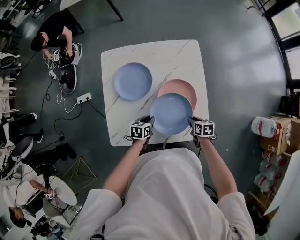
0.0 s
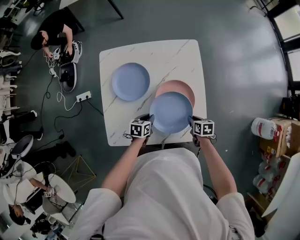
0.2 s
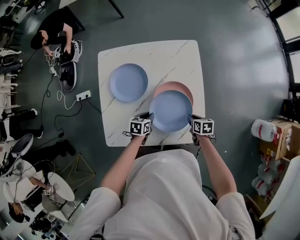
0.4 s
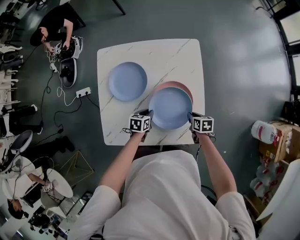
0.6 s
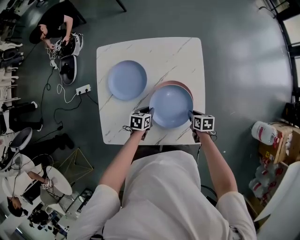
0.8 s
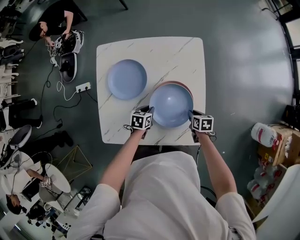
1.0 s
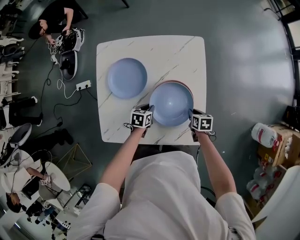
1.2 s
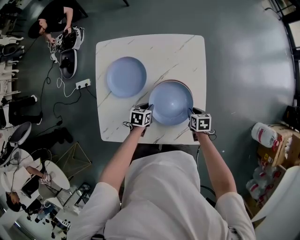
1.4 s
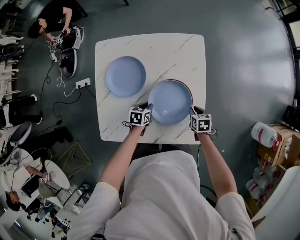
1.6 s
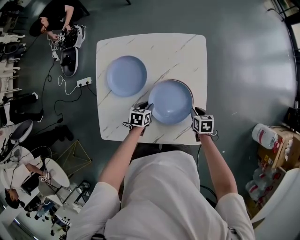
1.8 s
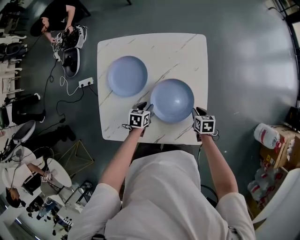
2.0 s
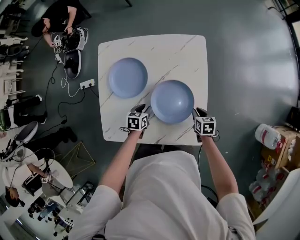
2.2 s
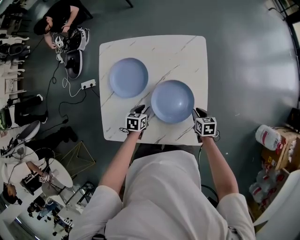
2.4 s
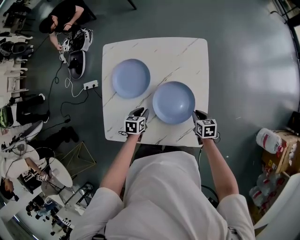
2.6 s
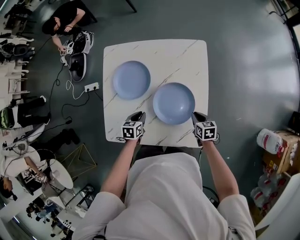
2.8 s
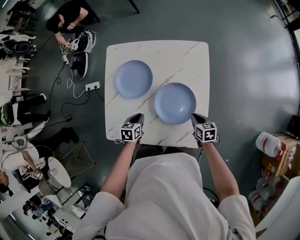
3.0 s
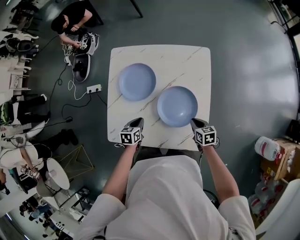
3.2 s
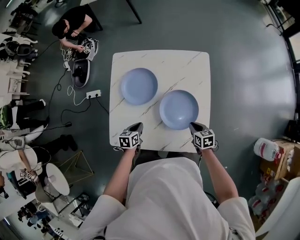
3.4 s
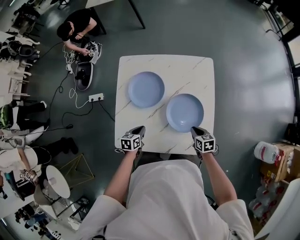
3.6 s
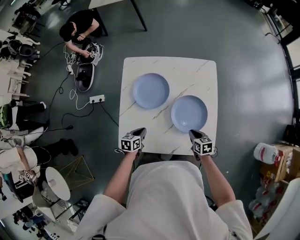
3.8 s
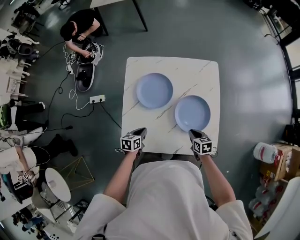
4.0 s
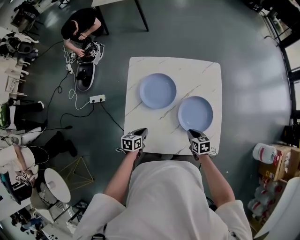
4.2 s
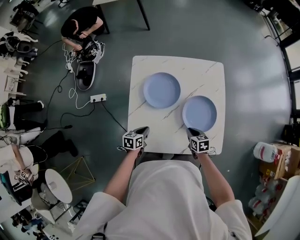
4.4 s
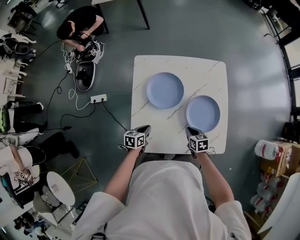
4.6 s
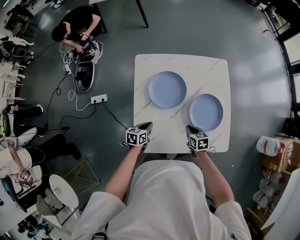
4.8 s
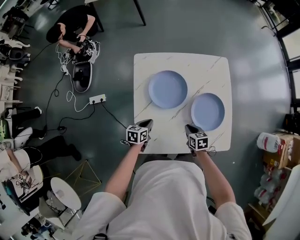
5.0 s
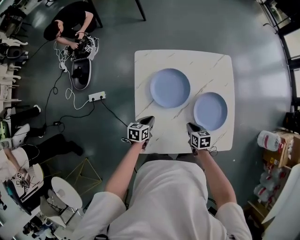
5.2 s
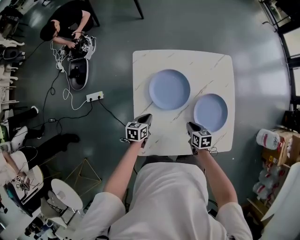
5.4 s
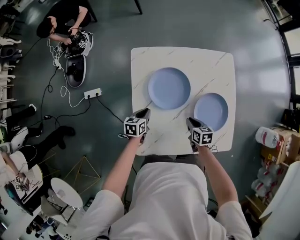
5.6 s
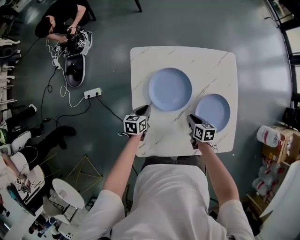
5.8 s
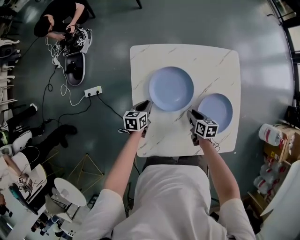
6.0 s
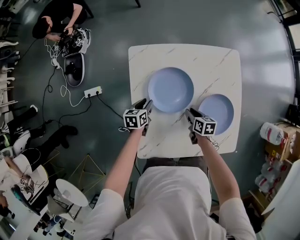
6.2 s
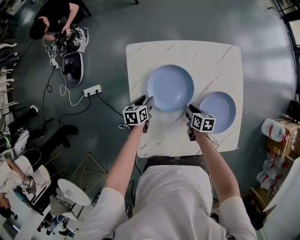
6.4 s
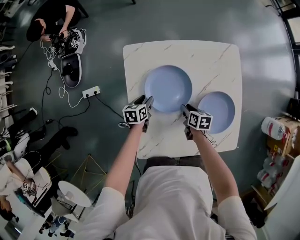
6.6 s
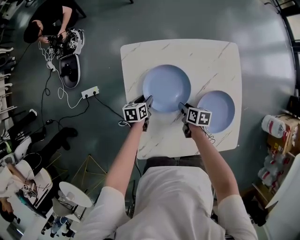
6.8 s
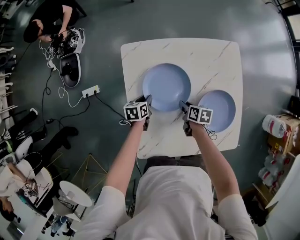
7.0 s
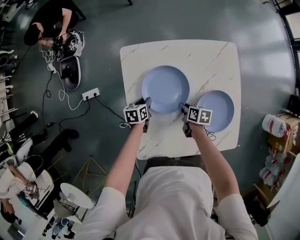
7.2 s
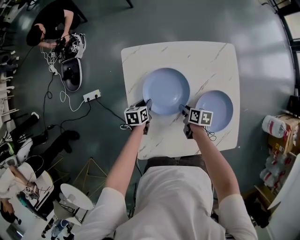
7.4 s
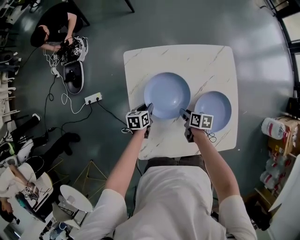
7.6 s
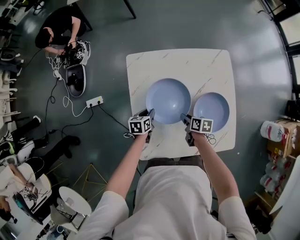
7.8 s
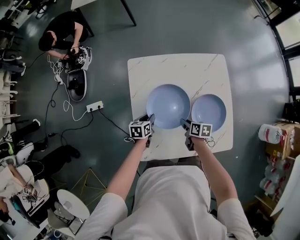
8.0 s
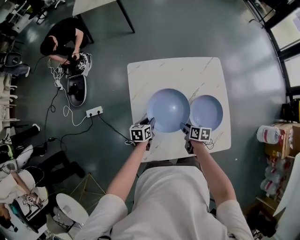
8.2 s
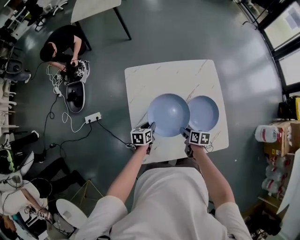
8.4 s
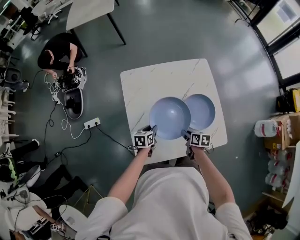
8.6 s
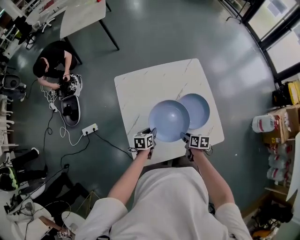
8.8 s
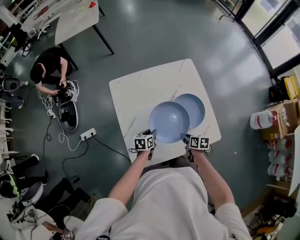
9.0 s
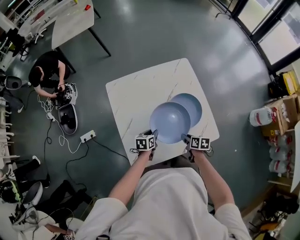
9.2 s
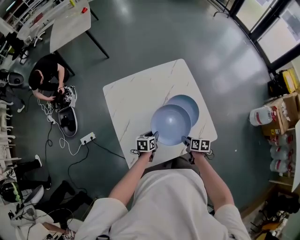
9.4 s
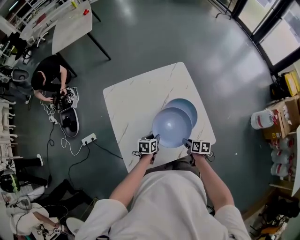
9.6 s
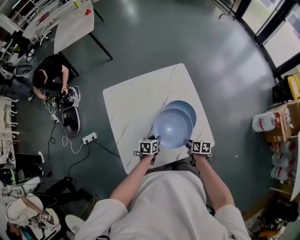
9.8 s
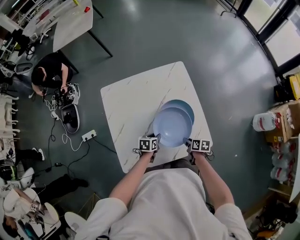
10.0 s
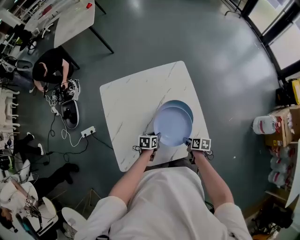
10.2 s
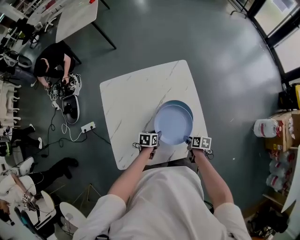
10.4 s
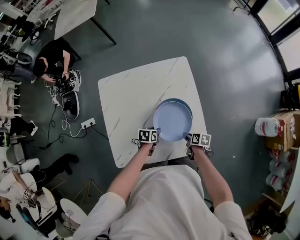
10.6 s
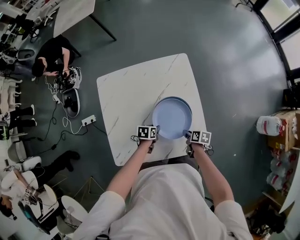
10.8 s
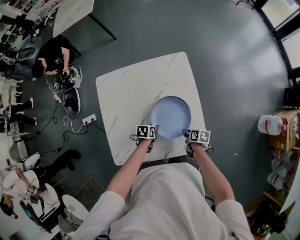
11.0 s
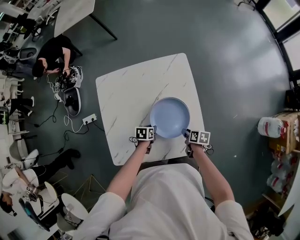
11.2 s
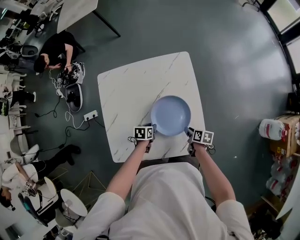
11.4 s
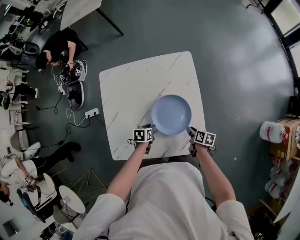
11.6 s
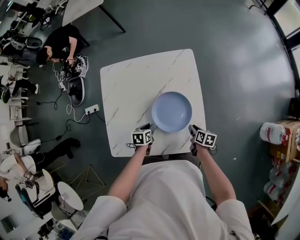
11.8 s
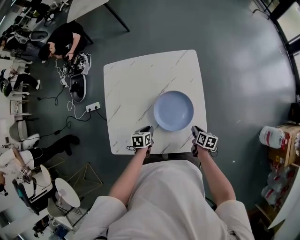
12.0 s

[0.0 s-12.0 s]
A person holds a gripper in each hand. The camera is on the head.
0.0 to 1.6 s: The right gripper heads forward and to the right, covering approximately 10 cm; the left gripper is displaced forward by roughly 5 cm.
1.6 to 3.0 s: The left gripper goes some 10 cm to the left and upward.
3.0 to 4.4 s: The grippers both shift to the left by some 20 cm.
4.4 to 6.0 s: The right gripper travels forward, to the left and downward by about 15 cm; the left gripper travels forward by approximately 20 cm.
7.6 to 9.0 s: The two grippers go approximately 20 cm backward, to the right and upward.
9.0 to 10.4 s: The two grippers go approximately 15 cm to the right.
10.4 to 12.0 s: The right gripper heads to the right, covering about 5 cm.

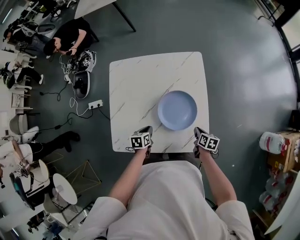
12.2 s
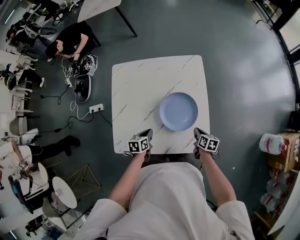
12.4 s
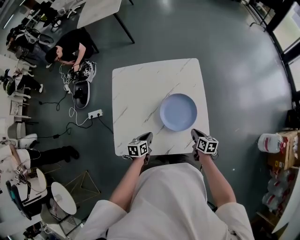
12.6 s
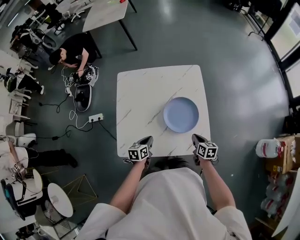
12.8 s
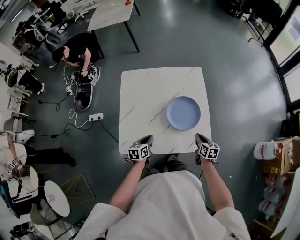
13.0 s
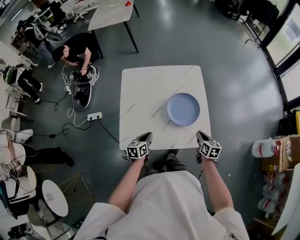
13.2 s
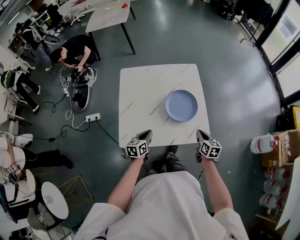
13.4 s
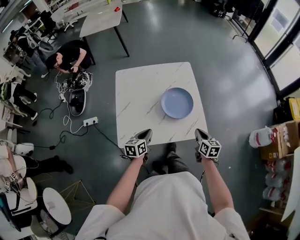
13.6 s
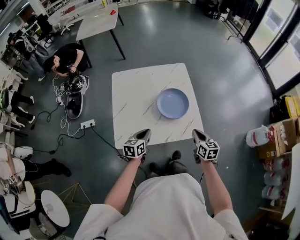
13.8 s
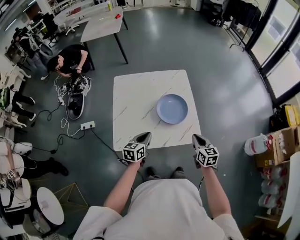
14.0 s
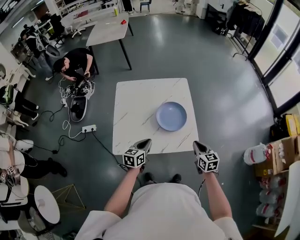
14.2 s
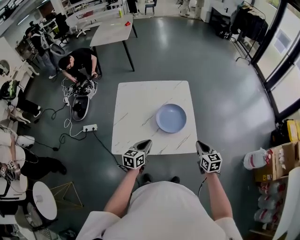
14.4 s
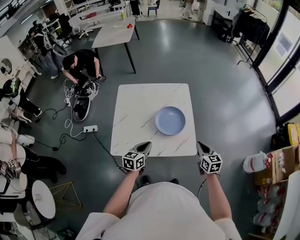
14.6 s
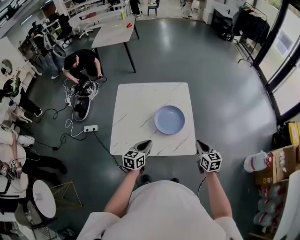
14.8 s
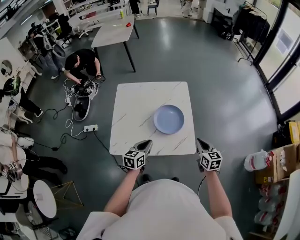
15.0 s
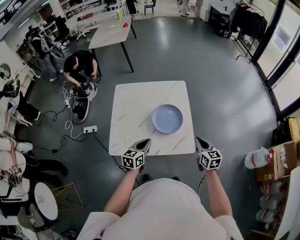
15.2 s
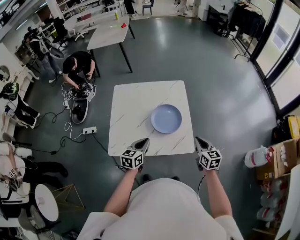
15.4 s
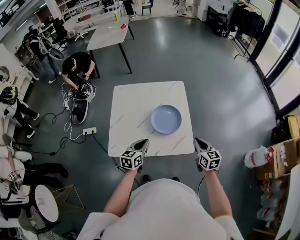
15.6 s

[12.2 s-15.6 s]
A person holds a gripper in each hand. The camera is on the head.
12.2 to 13.8 s: The grippers both shift upward and backward by approximately 25 cm. The left gripper swivels approximately 30 degrees, while the right gripper rotates roughly 30 degrees.
13.8 to 15.6 s: Both grippers travel together to the right and upward, roughly 10 cm.

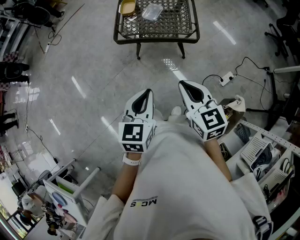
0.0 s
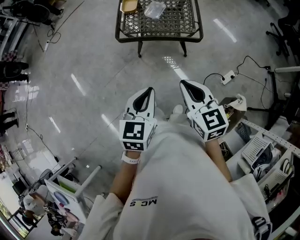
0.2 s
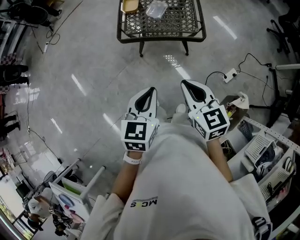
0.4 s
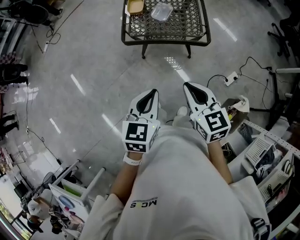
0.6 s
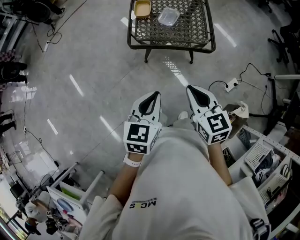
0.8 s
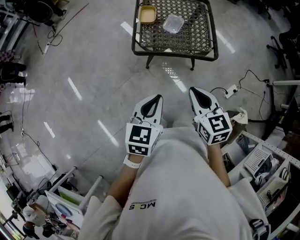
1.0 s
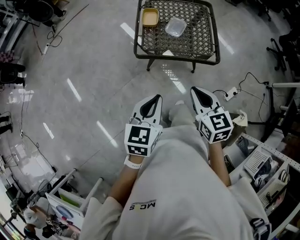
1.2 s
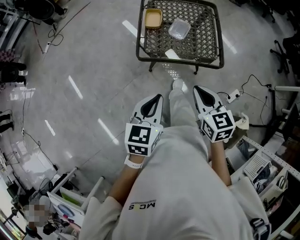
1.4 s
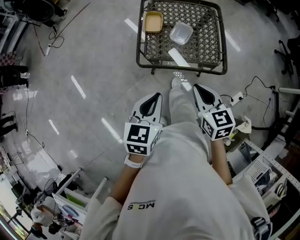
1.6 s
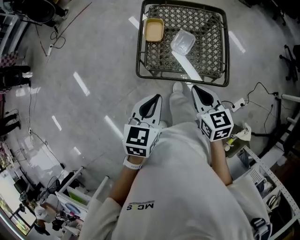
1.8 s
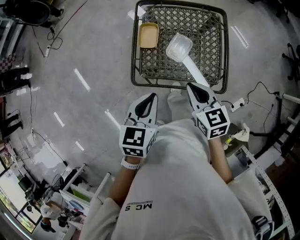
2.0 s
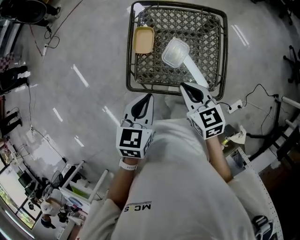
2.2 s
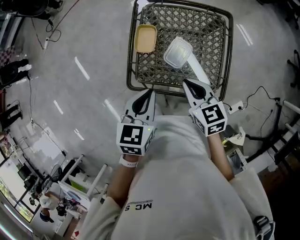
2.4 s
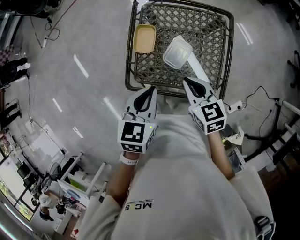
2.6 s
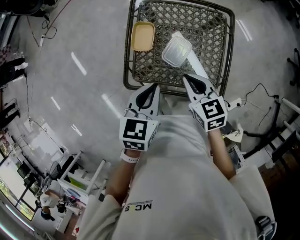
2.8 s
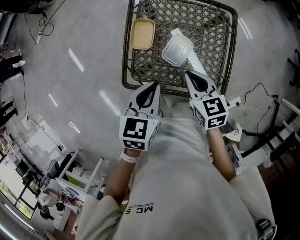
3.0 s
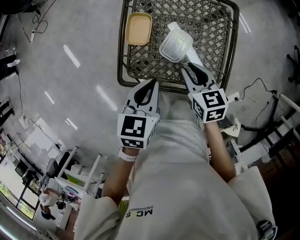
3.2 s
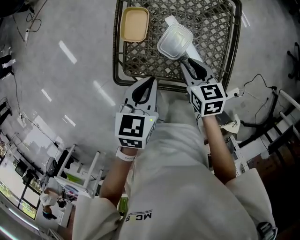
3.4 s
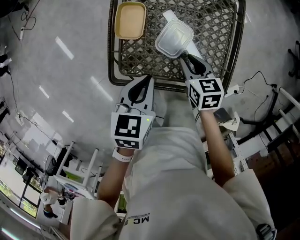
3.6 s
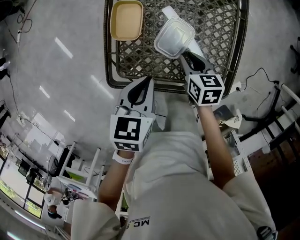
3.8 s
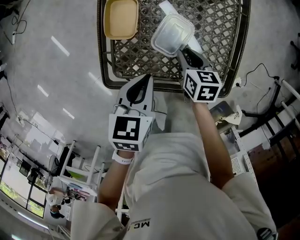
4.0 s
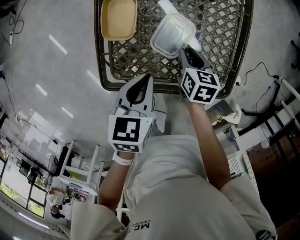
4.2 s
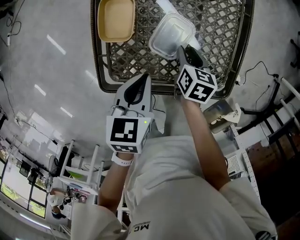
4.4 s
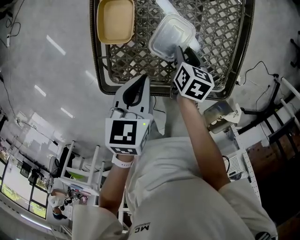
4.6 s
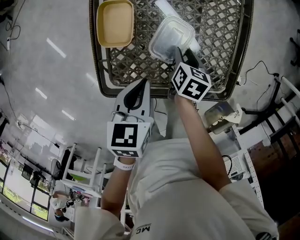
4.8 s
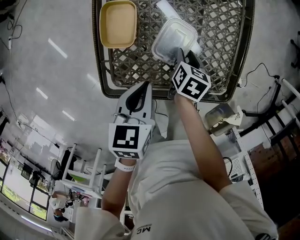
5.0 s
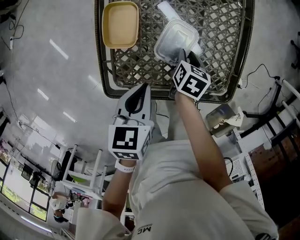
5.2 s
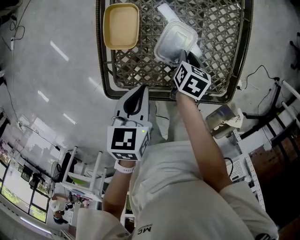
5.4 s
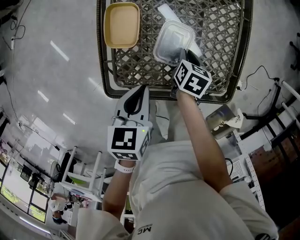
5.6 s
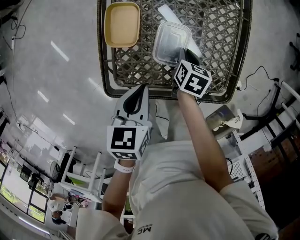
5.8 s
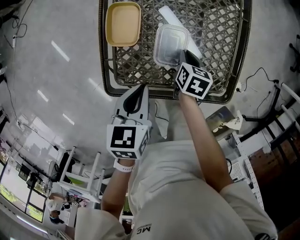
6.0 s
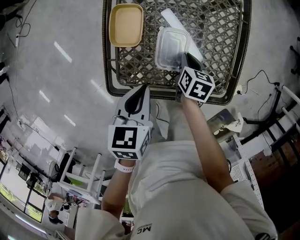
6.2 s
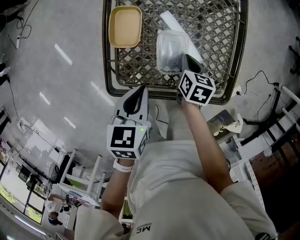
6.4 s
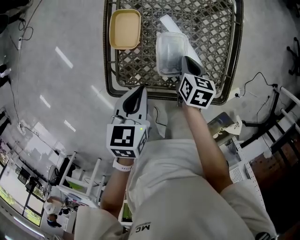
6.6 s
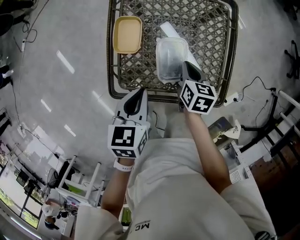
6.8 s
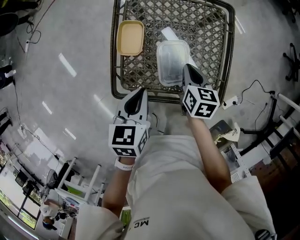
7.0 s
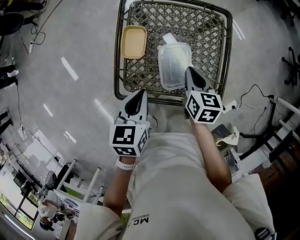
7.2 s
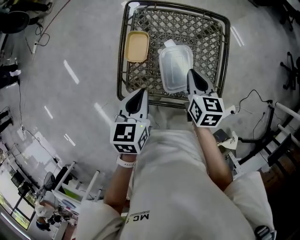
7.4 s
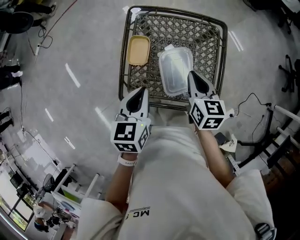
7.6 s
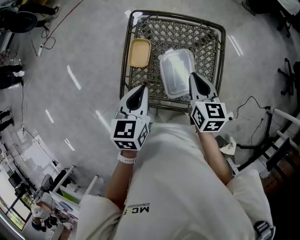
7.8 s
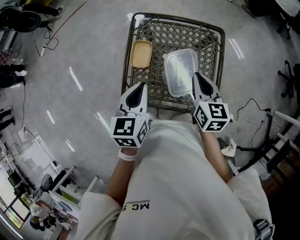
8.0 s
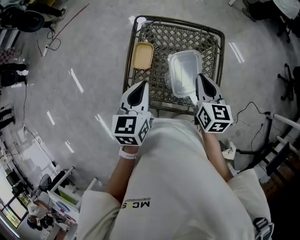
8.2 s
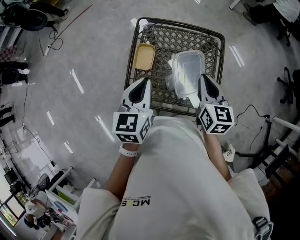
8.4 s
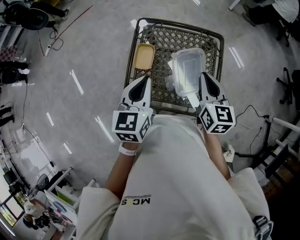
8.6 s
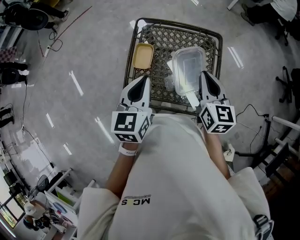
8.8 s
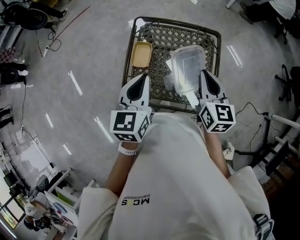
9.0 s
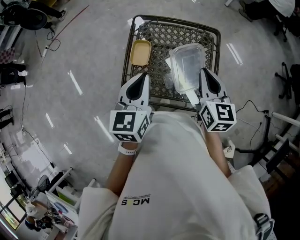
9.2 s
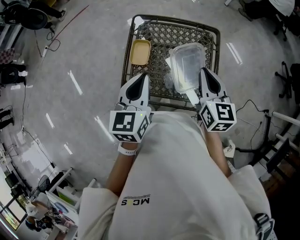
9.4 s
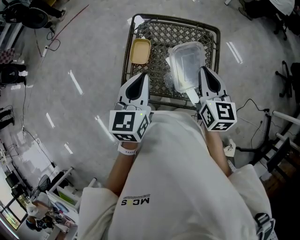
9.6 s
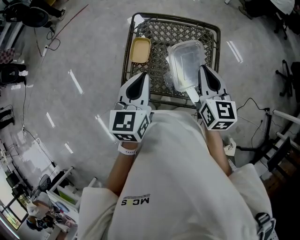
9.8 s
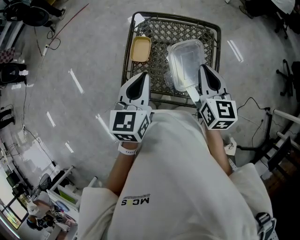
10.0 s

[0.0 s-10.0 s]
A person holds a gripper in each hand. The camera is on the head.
0.0 to 1.4 s: Both grippers travel together forward and to the left, roughly 20 cm.
1.4 to 2.8 s: The grippers both shift forward by about 30 cm.
2.8 to 4.2 s: The grippers both shift downward by about 20 cm. The right gripper rotates some 40 degrees, and opens up.
4.2 to 5.8 s: The grippers stay close to where they were, moving slightly.
5.8 to 7.2 s: The left gripper heads upward, covering some 10 cm. Meanwhile the right gripper moves upward, some 20 cm, and rotates some 20 degrees.
7.2 to 8.6 s: The two grippers go roughly 15 cm upward. The right gripper changes its angle by about 20 degrees, while the left gripper swivels about 20 degrees.
8.6 to 10.0 s: The grippers make only small movements.
